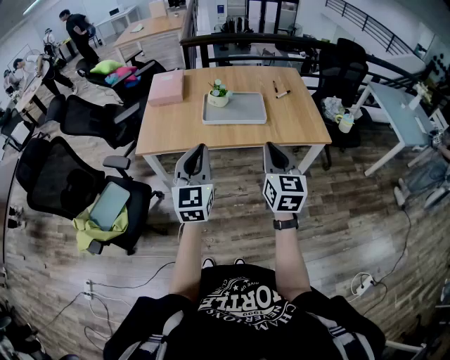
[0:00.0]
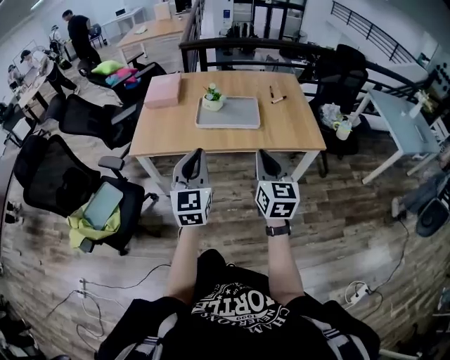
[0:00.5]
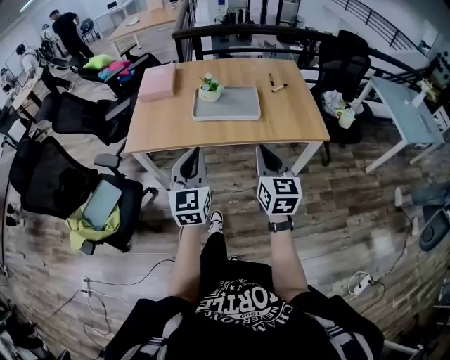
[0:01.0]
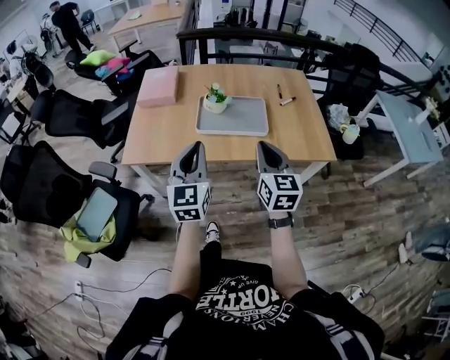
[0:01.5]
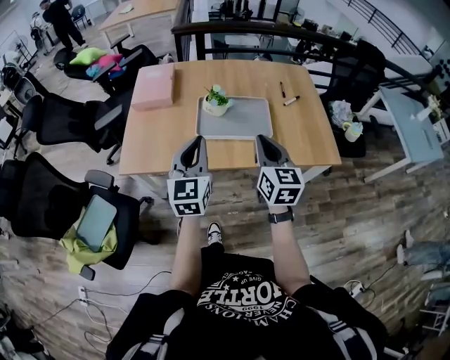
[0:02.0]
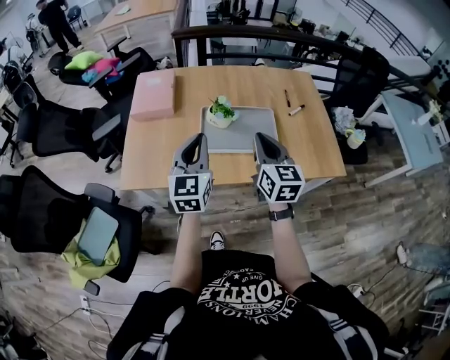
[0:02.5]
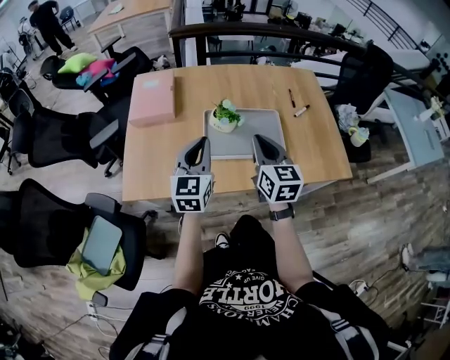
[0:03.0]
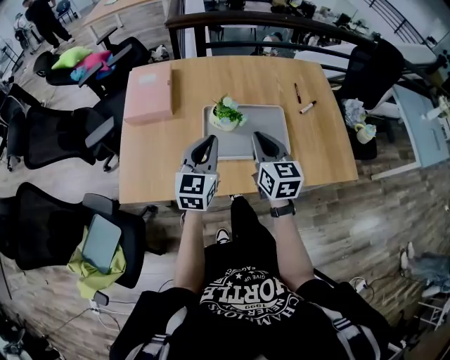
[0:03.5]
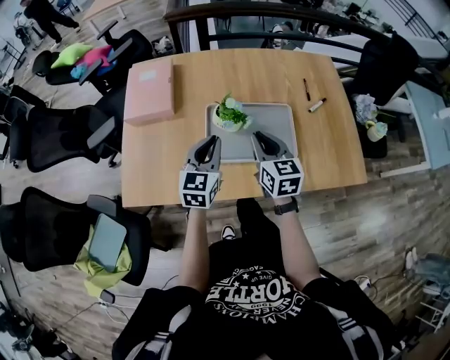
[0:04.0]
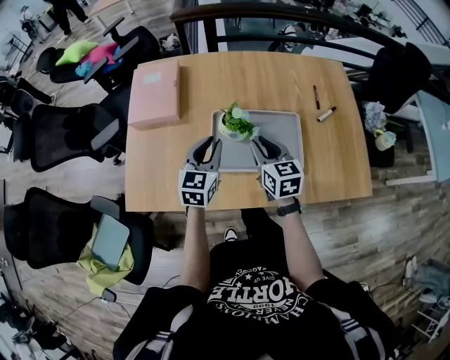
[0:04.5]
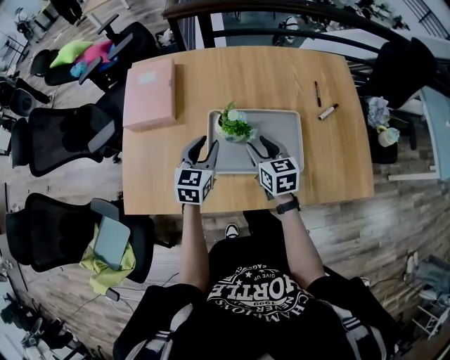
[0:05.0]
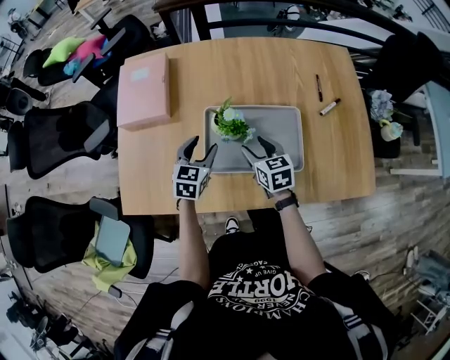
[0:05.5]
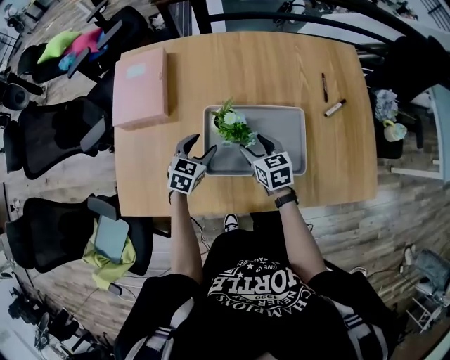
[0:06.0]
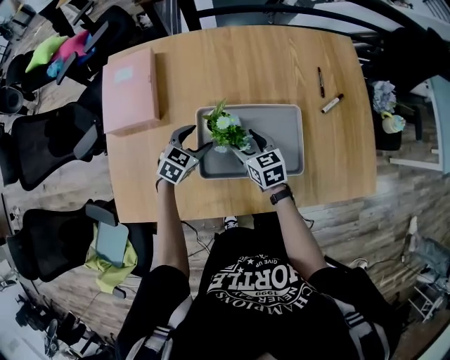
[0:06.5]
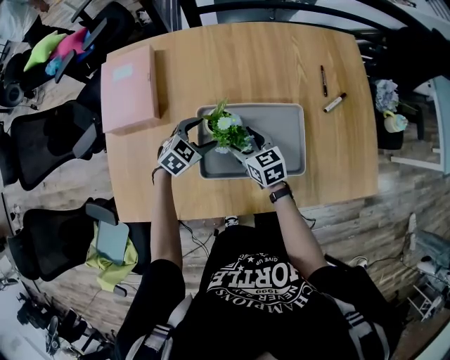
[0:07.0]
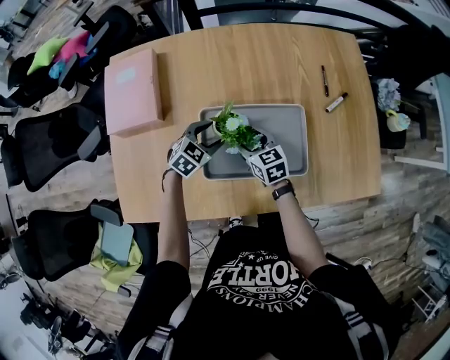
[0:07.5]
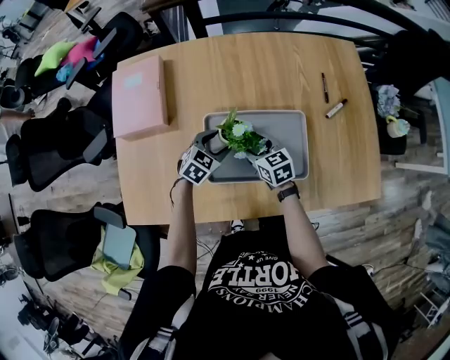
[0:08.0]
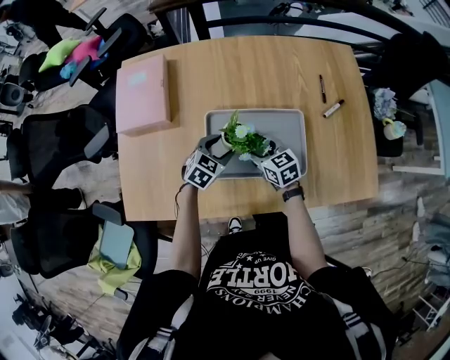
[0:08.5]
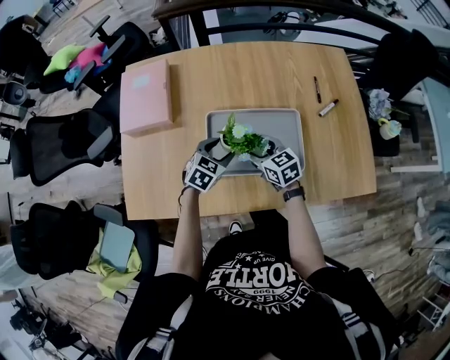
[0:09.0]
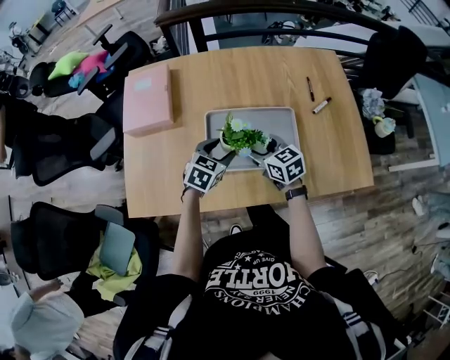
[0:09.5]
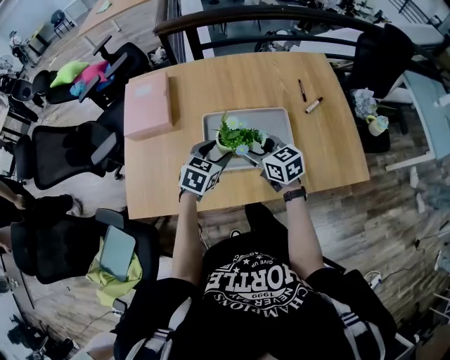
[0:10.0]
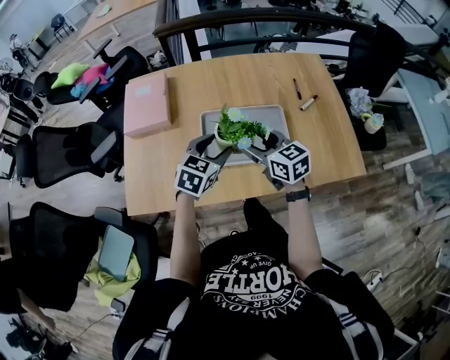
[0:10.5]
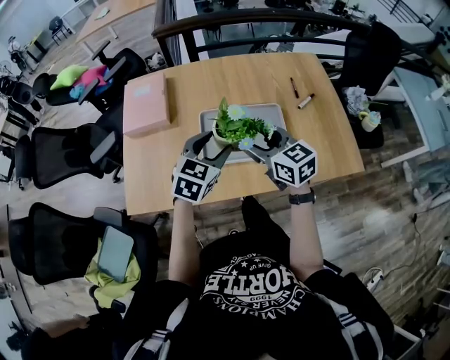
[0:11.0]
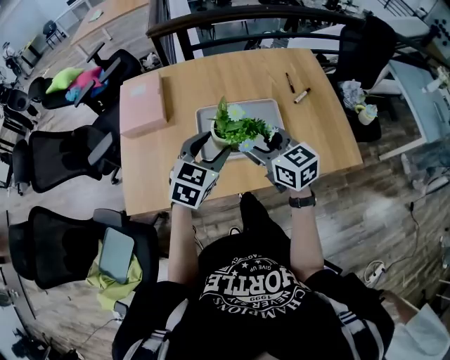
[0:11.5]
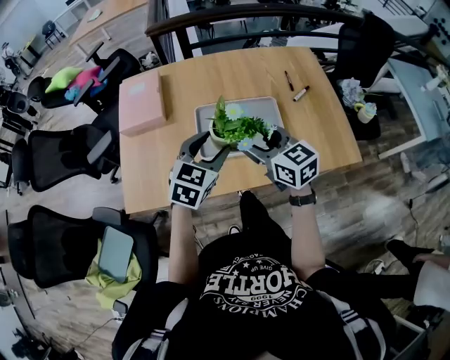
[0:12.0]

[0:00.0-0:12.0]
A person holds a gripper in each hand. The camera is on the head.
0:00.0 to 0:02.0: Both grippers travel together forward, approximately 25 cm.
0:02.0 to 0:04.0: The grippers both shift forward and downward by approximately 25 cm.
0:04.0 to 0:06.0: The two grippers go some 20 cm downward and forward. The left gripper changes its angle by some 30 degrees, and opens, while the right gripper changes its angle by about 20 degrees, and opens its fingers.
0:06.0 to 0:08.0: The left gripper travels to the right by roughly 5 cm.
0:08.0 to 0:10.0: Both grippers move upward and backward, some 20 cm.
0:10.0 to 0:12.0: The two grippers go about 15 cm upward and backward.

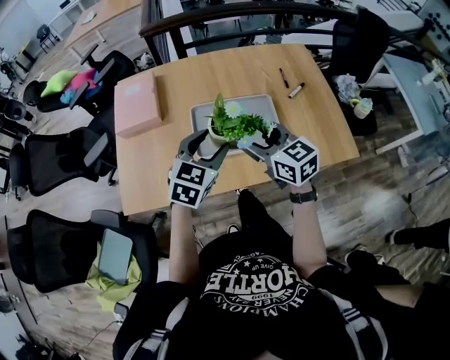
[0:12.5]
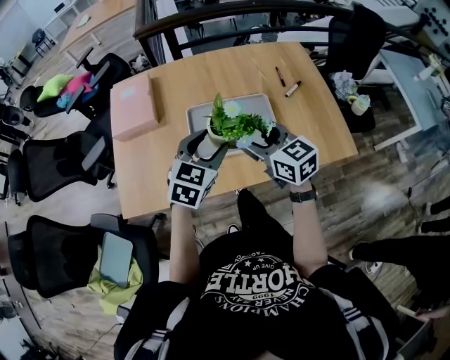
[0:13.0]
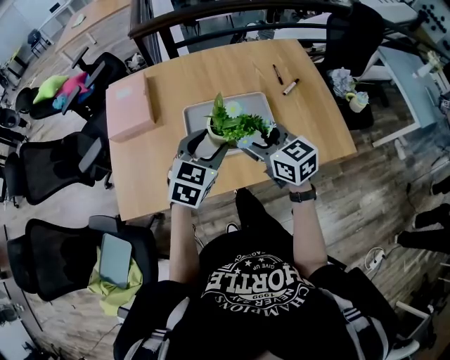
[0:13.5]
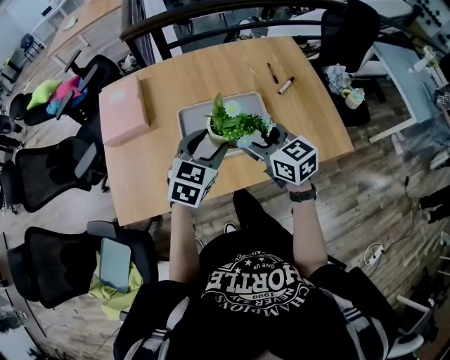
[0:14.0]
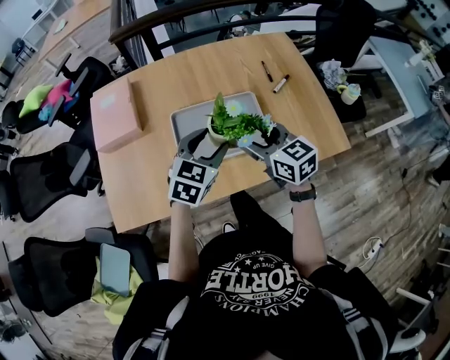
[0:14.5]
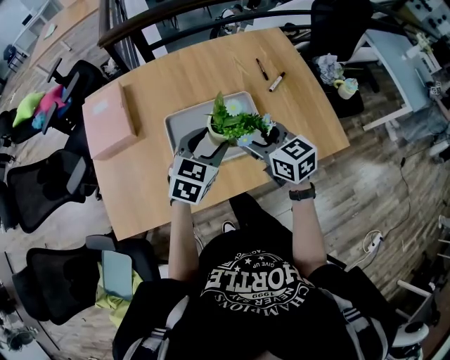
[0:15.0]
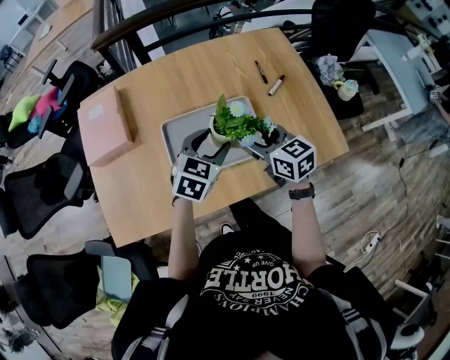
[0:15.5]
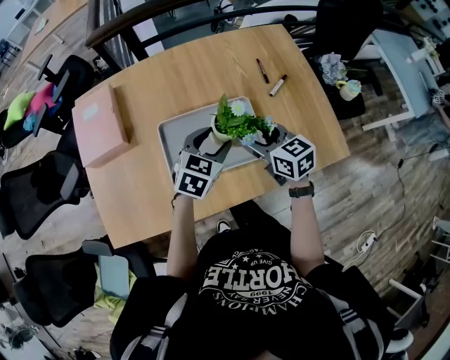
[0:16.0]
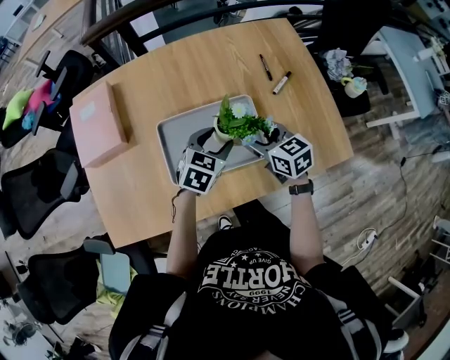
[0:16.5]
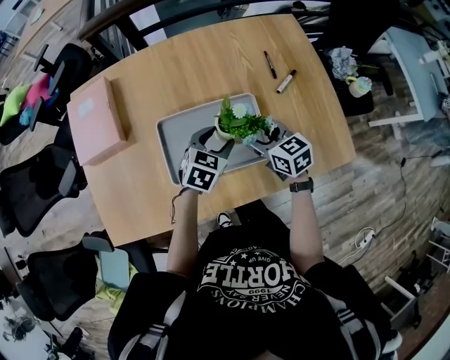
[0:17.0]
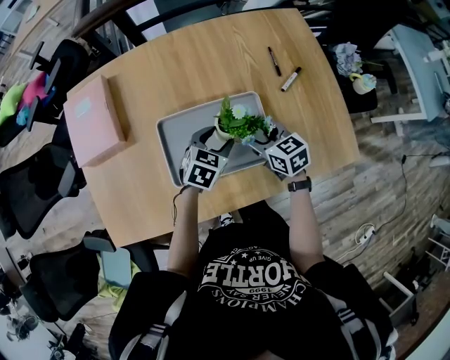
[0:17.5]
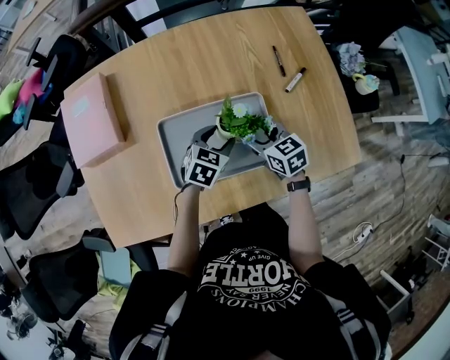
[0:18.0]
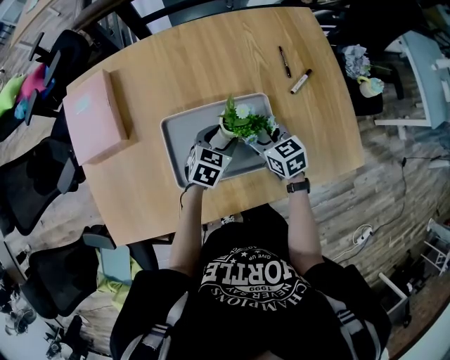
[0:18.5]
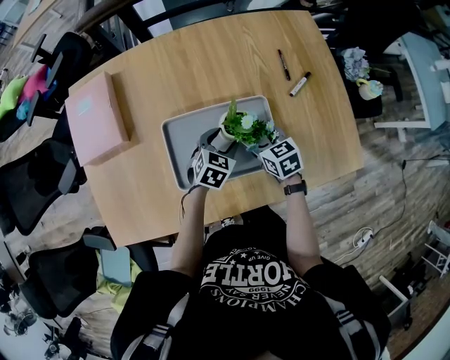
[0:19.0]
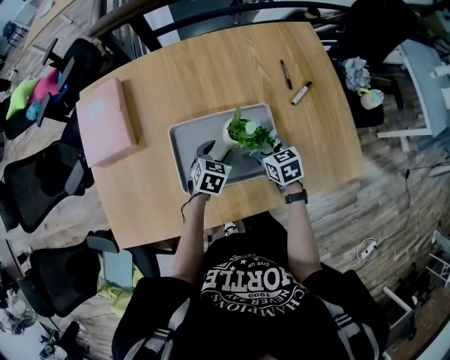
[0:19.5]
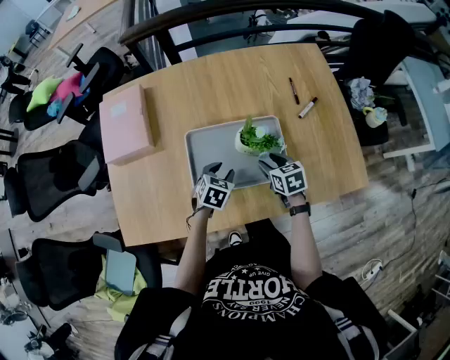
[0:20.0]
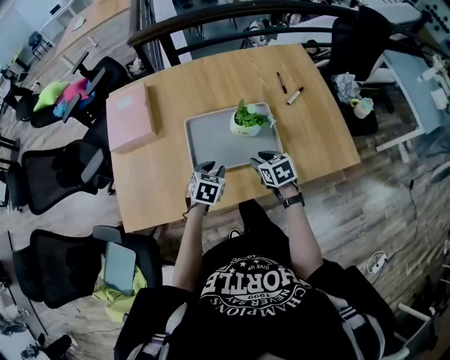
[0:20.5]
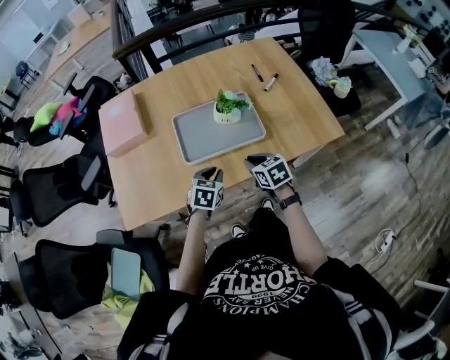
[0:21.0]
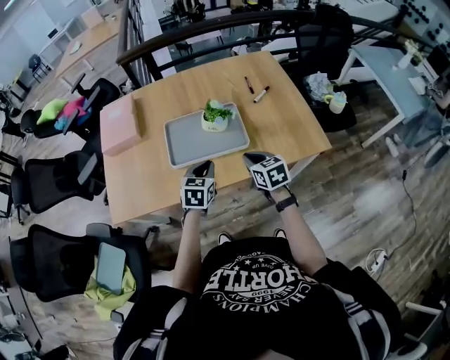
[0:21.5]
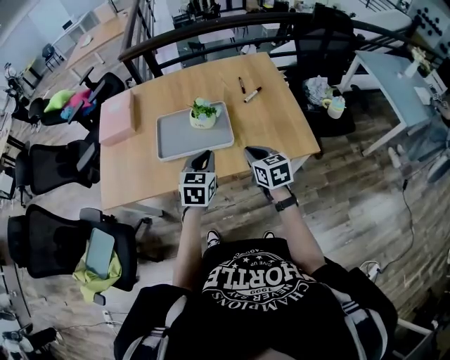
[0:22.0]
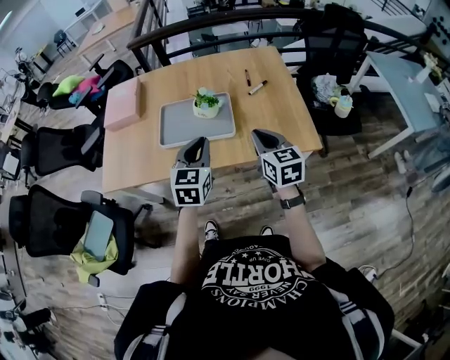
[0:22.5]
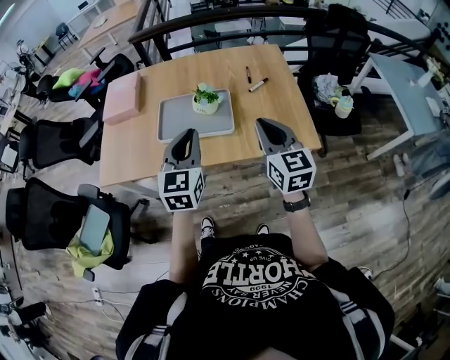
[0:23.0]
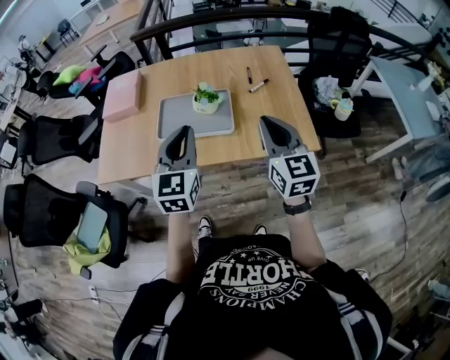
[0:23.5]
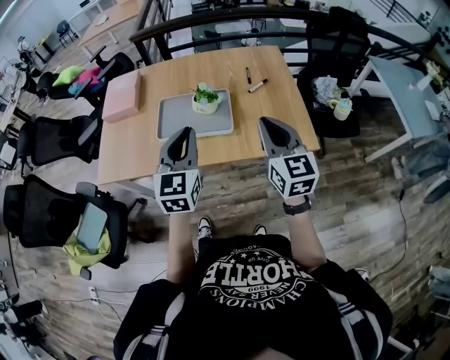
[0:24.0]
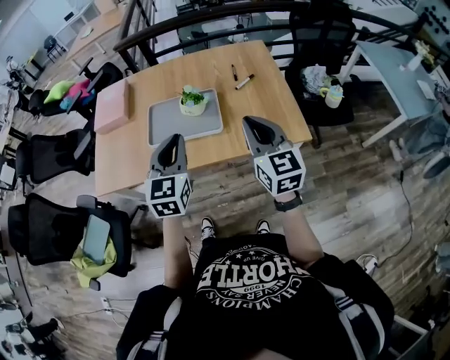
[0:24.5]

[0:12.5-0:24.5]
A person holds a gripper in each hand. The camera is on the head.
0:12.5 to 0:14.5: The grippers both shift to the right by some 5 cm.
0:14.5 to 0:16.5: The grippers both shift forward, downward and to the right by approximately 15 cm.
0:16.5 to 0:18.5: Both grippers travel together downward, some 10 cm.
0:18.5 to 0:20.5: The left gripper goes about 20 cm backward and to the left, and closes its fingers. Meanwhile the right gripper goes approximately 15 cm backward, and closes.
0:20.5 to 0:22.5: The grippers both shift upward, to the right and backward by roughly 35 cm. The right gripper changes its angle by some 30 degrees, and closes its fingers; the left gripper changes its angle by about 30 degrees.
0:22.5 to 0:24.5: The left gripper travels upward by about 5 cm, while the right gripper shifts approximately 10 cm upward.

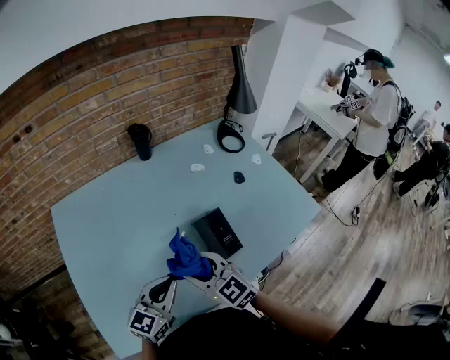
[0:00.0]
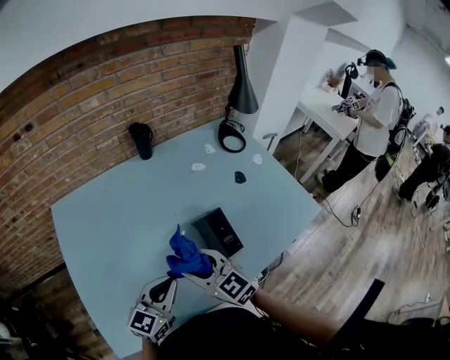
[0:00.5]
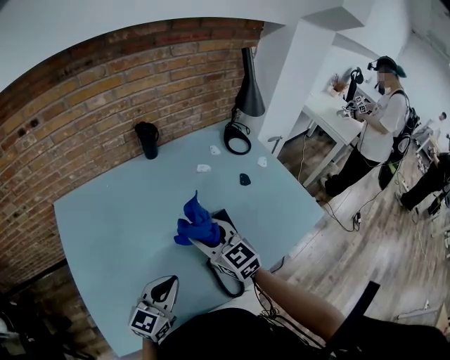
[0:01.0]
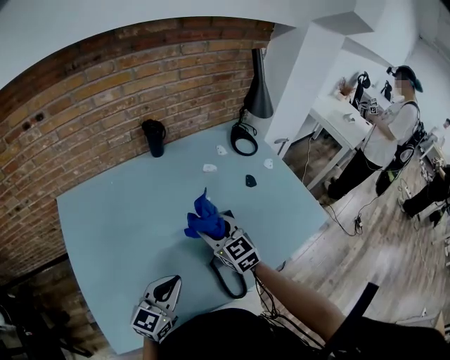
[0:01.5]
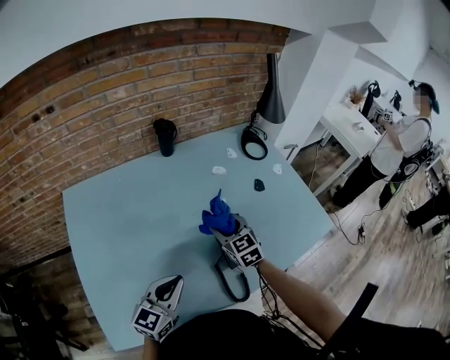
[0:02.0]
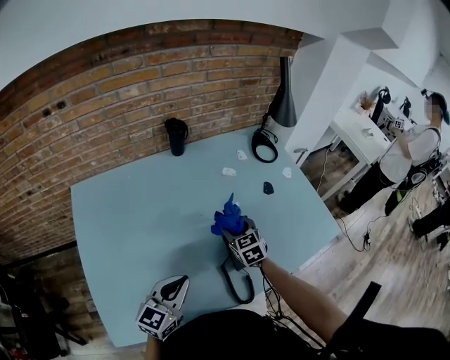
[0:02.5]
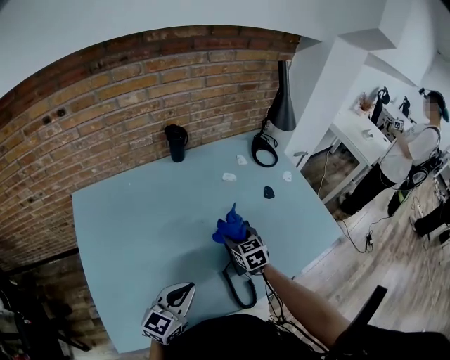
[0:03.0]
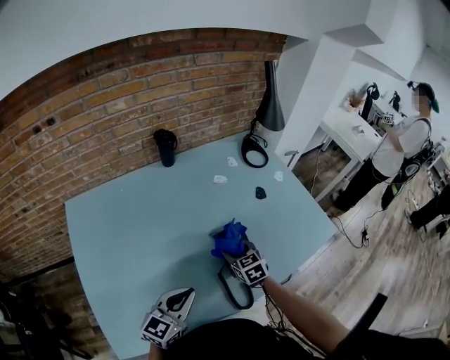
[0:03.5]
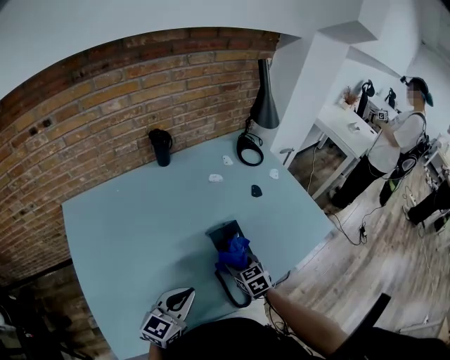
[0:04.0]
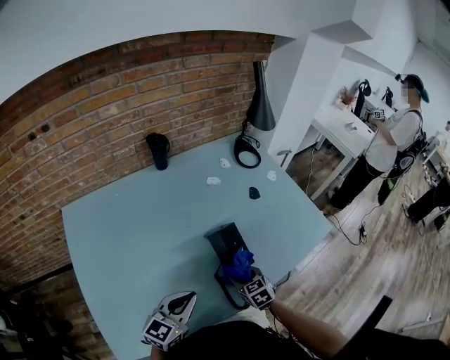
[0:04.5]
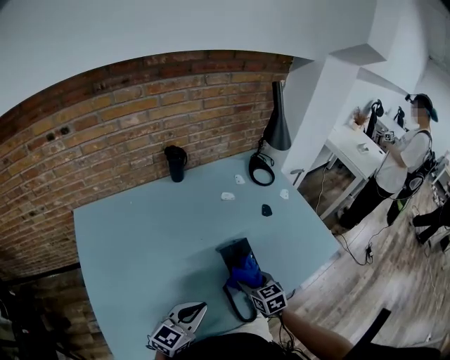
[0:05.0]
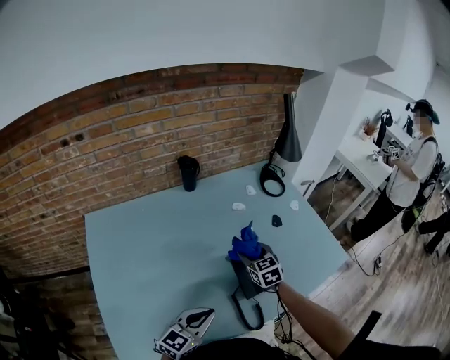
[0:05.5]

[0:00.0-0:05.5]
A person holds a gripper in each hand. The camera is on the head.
0:00.0 to 0:02.0: The right gripper heads forward and to the right, covering some 20 cm.
0:02.0 to 0:03.5: The right gripper heads downward, covering roughly 10 cm.
0:03.5 to 0:05.5: The right gripper shifts about 10 cm upward and forward.
